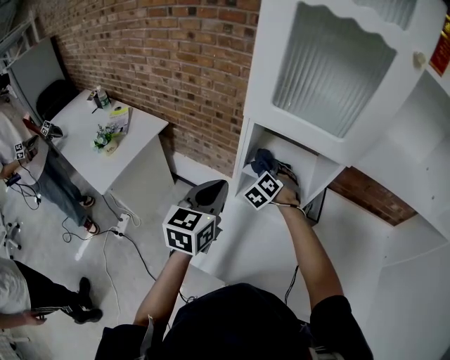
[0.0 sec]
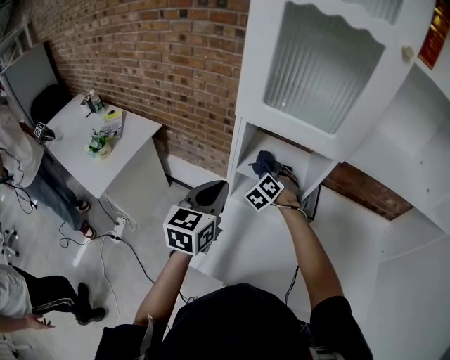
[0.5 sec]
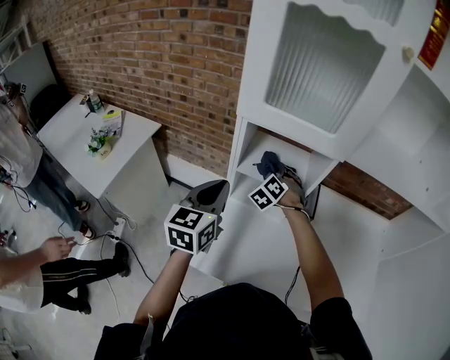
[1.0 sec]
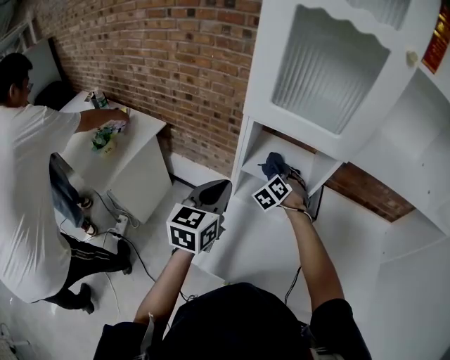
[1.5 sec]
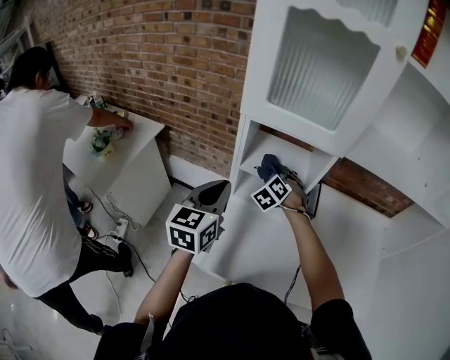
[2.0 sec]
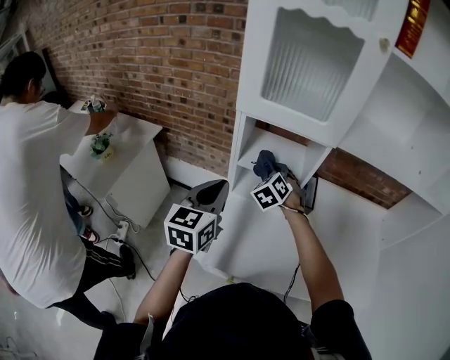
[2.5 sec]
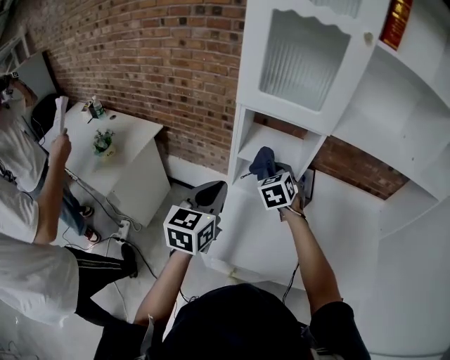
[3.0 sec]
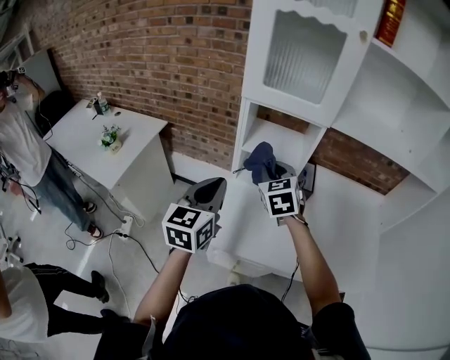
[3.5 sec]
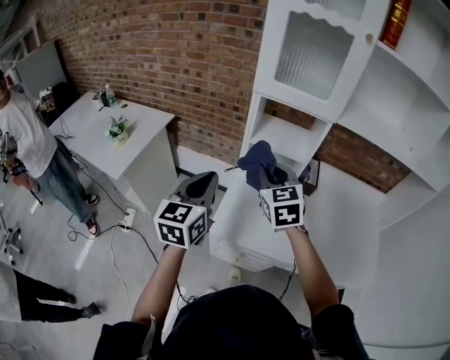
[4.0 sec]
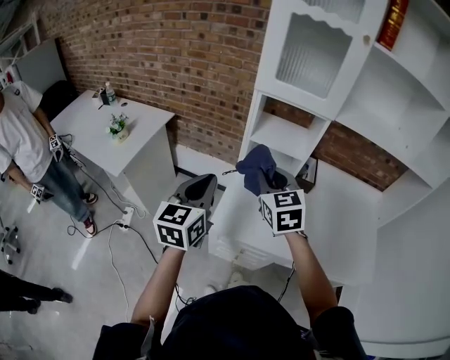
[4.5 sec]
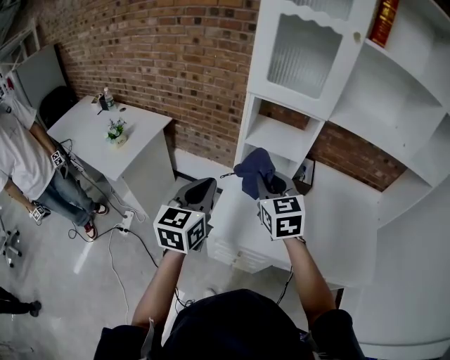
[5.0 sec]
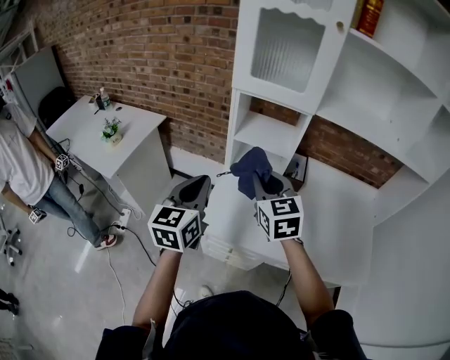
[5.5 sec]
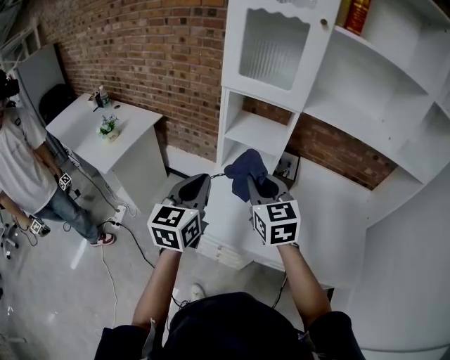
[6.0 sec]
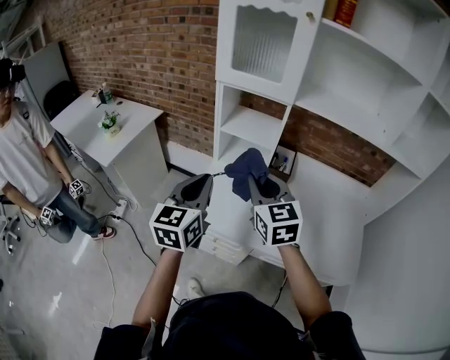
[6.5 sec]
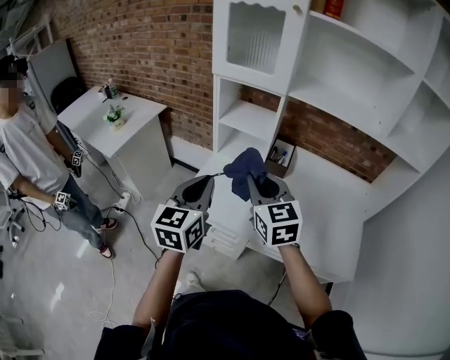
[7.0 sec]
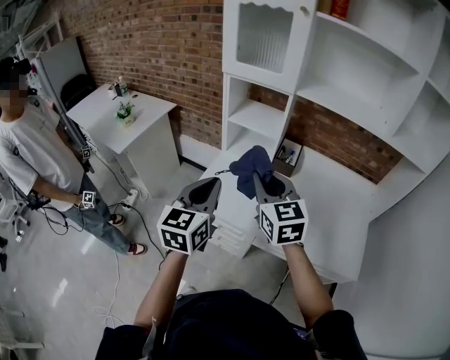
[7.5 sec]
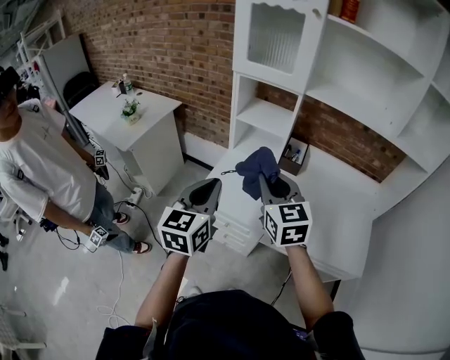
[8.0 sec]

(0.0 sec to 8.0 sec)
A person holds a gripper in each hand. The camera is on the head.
0.0 sec - 2.0 sec: The right gripper changes place by about 5 cm.
2.0 sec - 4.0 sec: The left gripper shifts about 15 cm backward, while the right gripper heads backward and upward, covering some 30 cm, and swivels roughly 40 degrees.
4.0 sec - 6.0 sec: The left gripper shifts some 10 cm to the right, while the right gripper shifts approximately 10 cm backward and to the right.
6.0 sec - 8.0 sec: Both grippers move backward, roughly 10 cm.

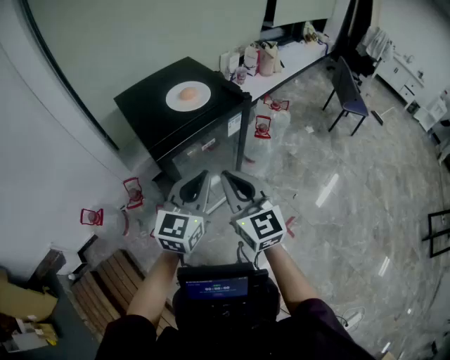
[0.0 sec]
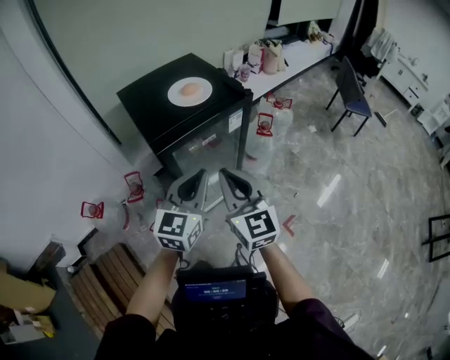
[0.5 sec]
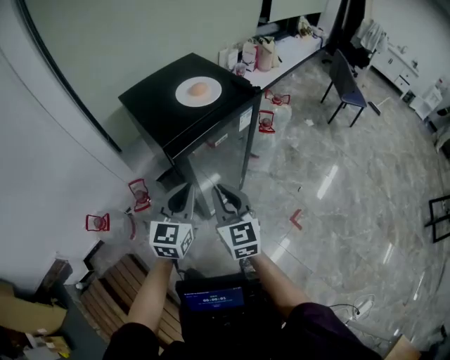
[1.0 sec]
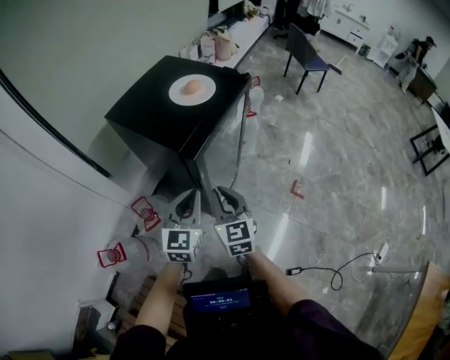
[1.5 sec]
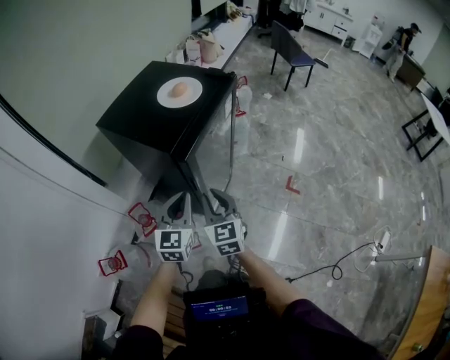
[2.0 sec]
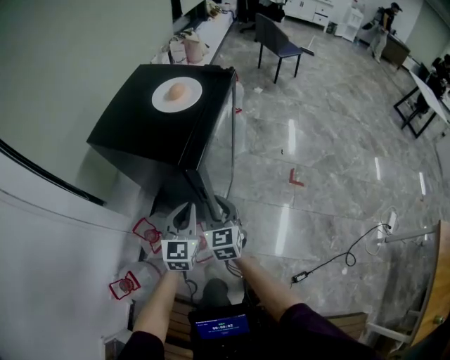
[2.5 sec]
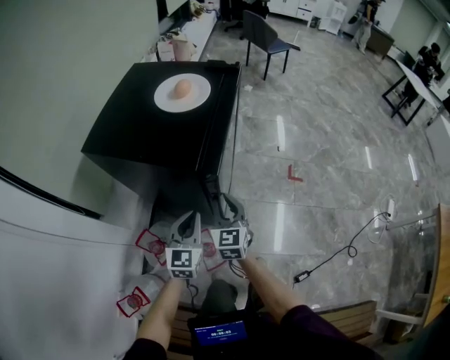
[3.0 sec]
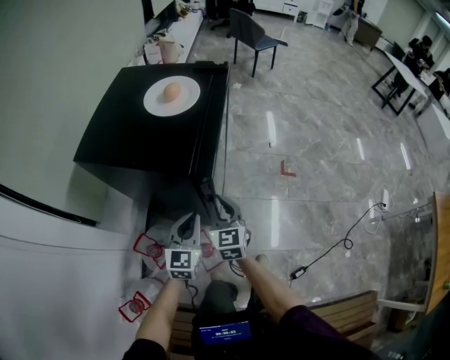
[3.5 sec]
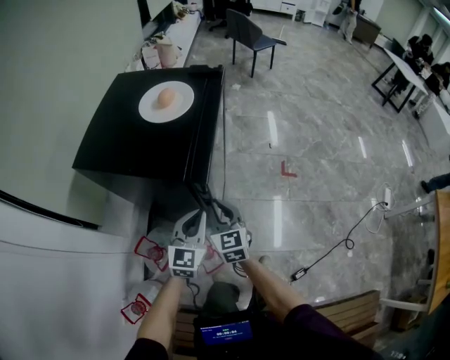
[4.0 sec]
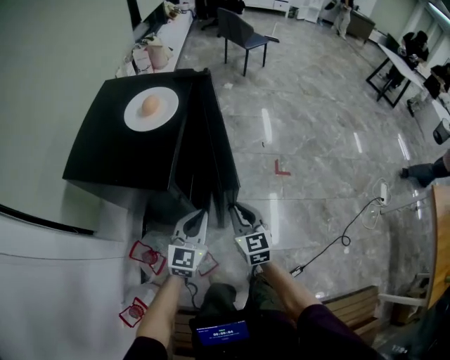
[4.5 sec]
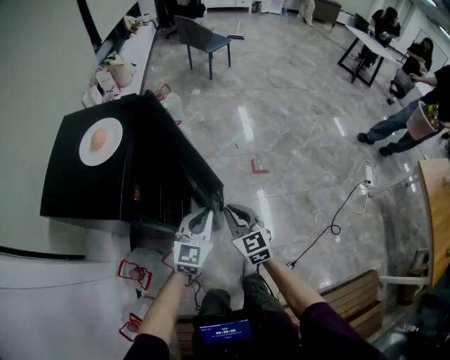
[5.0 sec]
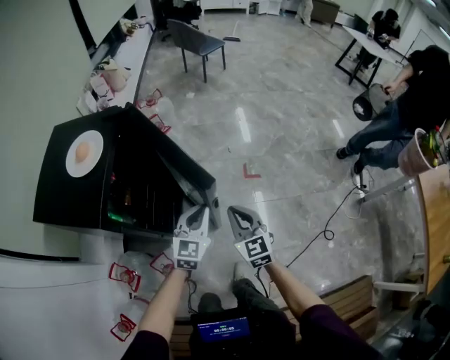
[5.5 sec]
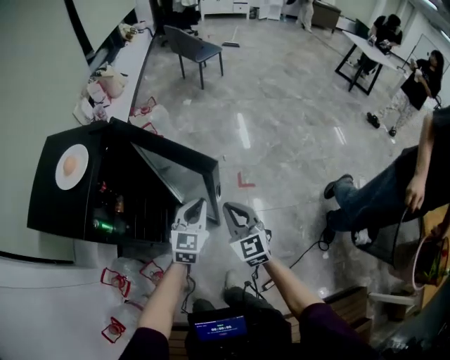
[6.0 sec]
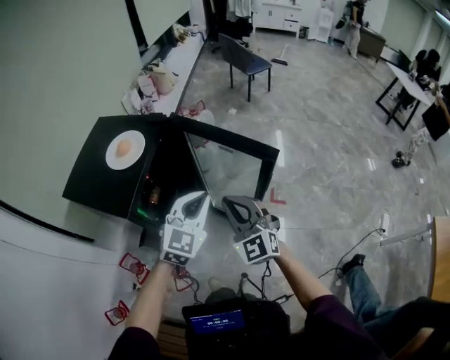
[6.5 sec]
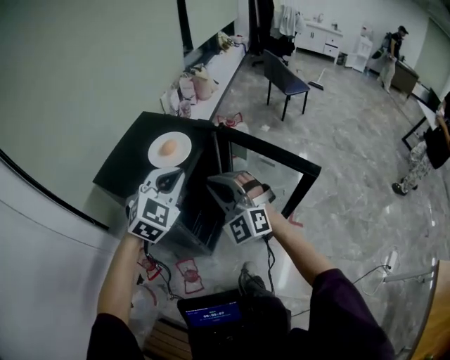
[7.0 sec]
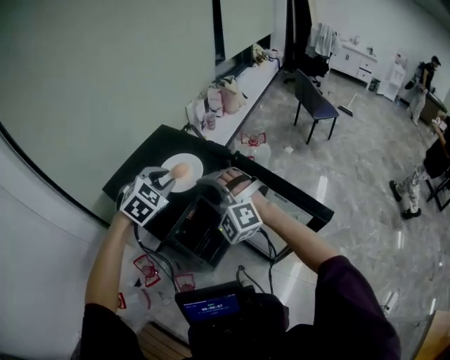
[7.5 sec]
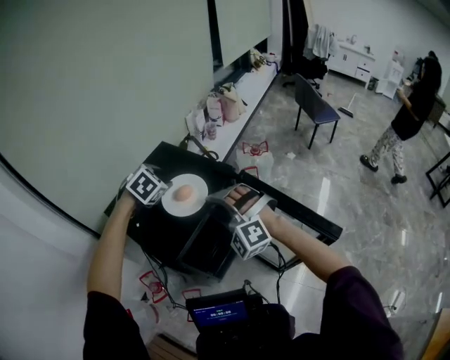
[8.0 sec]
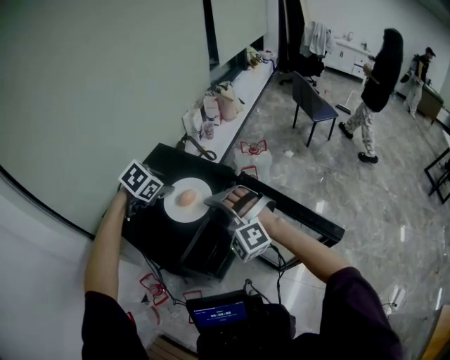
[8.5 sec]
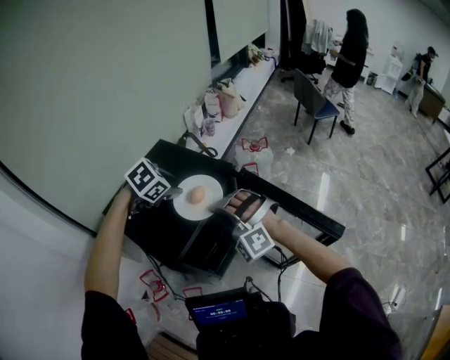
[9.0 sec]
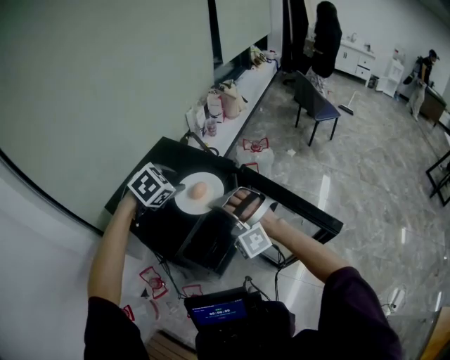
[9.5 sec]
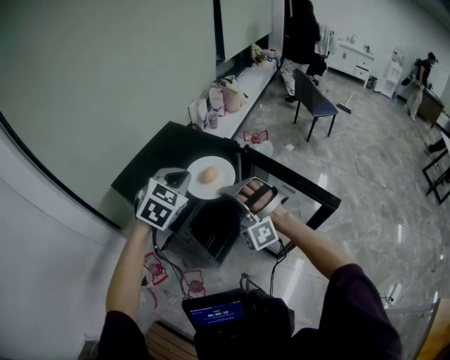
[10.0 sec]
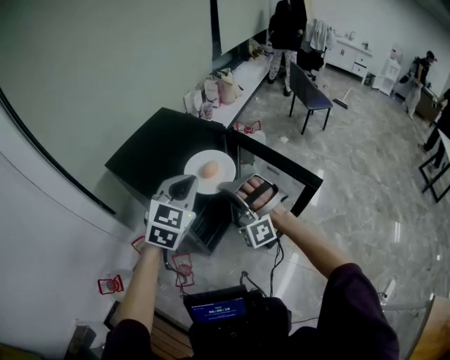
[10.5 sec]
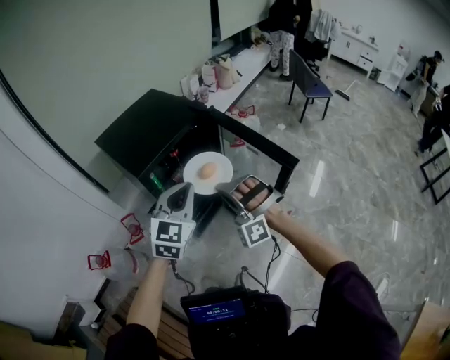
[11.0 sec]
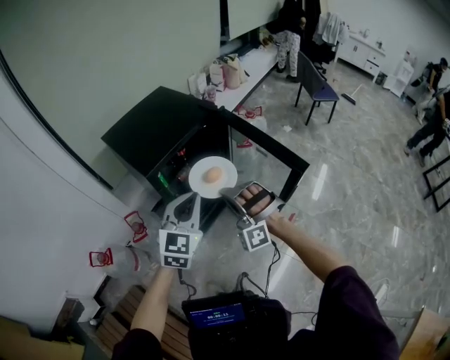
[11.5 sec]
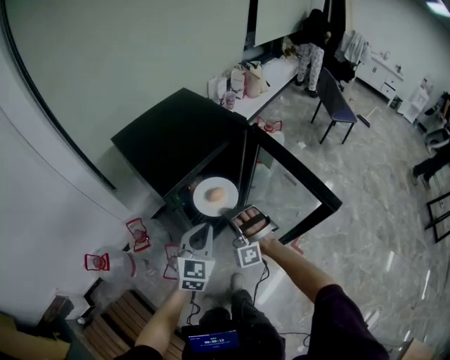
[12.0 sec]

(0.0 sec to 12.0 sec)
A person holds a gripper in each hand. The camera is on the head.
0.0 sec - 2.0 sec: The two grippers go about 25 cm to the left and downward. The right gripper rotates some 40 degrees.
2.0 sec - 4.0 sec: The right gripper shifts roughly 15 cm downward, forward and to the left. Meanwhile the left gripper is displaced downward and forward by approximately 10 cm, and changes its angle by some 20 degrees.
4.0 sec - 6.0 sec: The left gripper moves to the right and forward, roughly 35 cm, while the right gripper is displaced to the right by about 35 cm.
6.0 sec - 8.0 sec: The right gripper shifts by approximately 40 cm, rolls counterclockwise, seen from behind, by roughly 70 degrees, and opens up. The left gripper shifts by about 50 cm, tips its fingers downward by about 40 degrees, and opens up.
8.0 sec - 10.0 sec: The right gripper travels backward by approximately 5 cm, changes its angle by roughly 20 degrees, and closes. Meanwhile the left gripper travels backward by roughly 15 cm, turns by roughly 20 degrees, and closes.
10.0 sec - 12.0 sec: The right gripper heads downward and backward, covering roughly 15 cm. The left gripper heads backward and downward, covering approximately 25 cm, and rotates roughly 30 degrees.

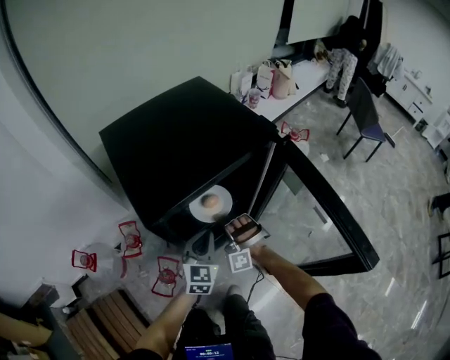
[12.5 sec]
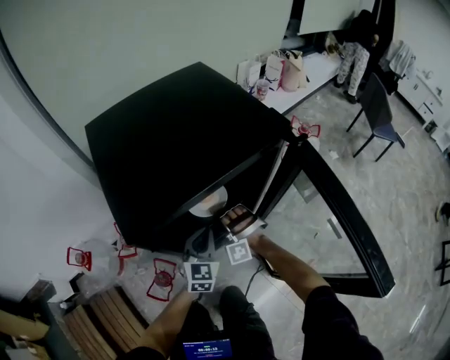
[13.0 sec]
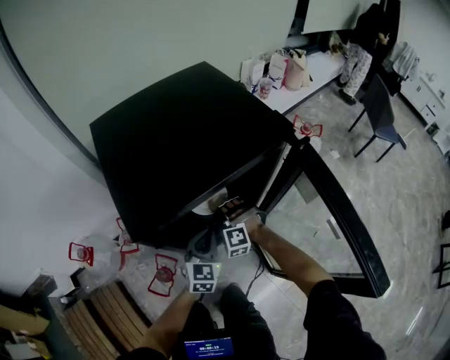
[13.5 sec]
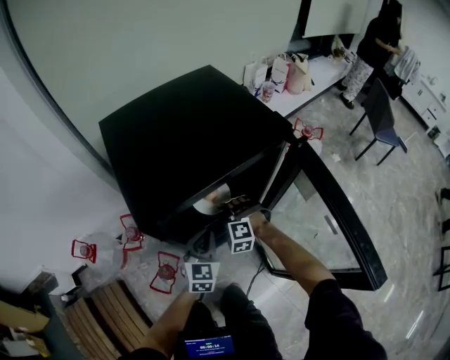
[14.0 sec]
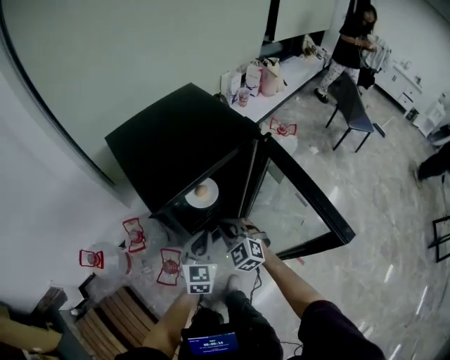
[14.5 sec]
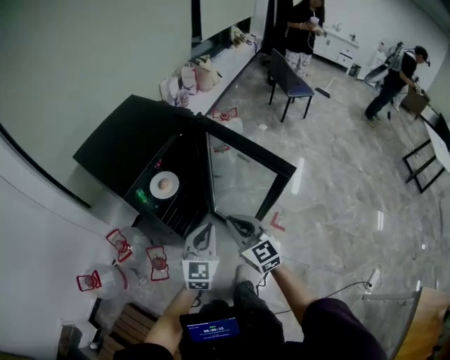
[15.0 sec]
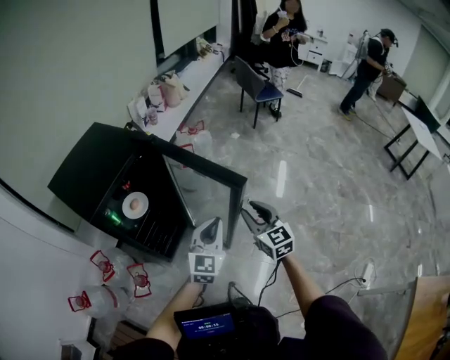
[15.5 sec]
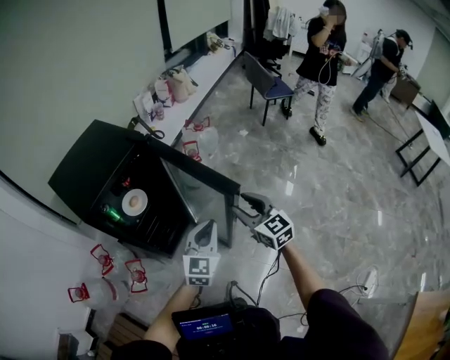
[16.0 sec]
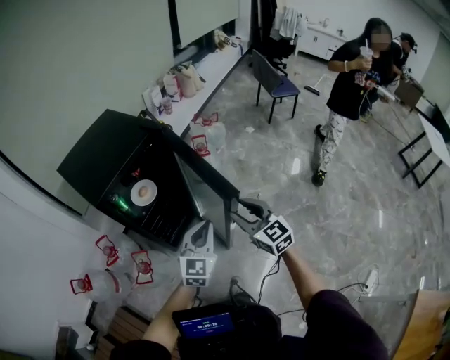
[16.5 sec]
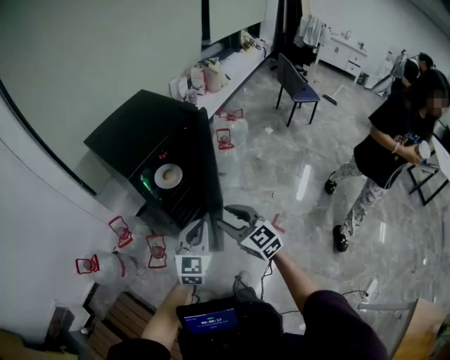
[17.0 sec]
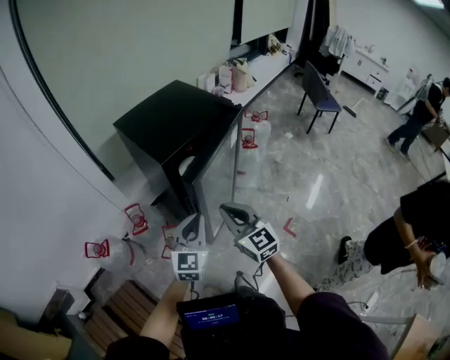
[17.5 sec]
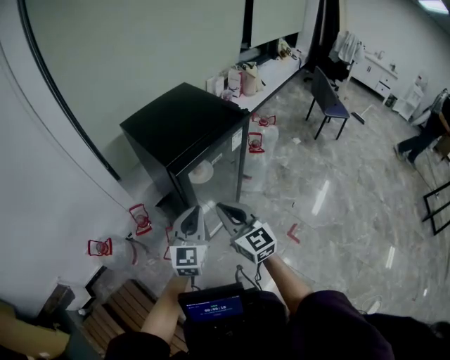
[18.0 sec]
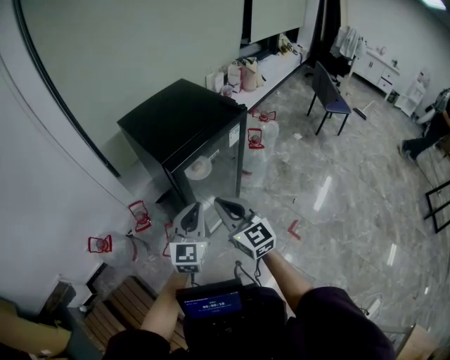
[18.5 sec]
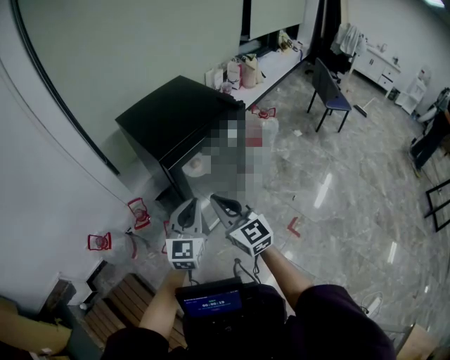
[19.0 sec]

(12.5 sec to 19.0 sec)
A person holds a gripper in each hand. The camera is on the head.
12.5 sec - 14.5 sec: The right gripper heads backward and upward, covering approximately 10 cm, rolls clockwise, seen from behind, by approximately 60 degrees, and opens, then closes once more. Meanwhile the left gripper travels upward and backward by some 10 cm.
14.5 sec - 17.0 sec: The right gripper rotates roughly 30 degrees, and opens up.
17.0 sec - 19.0 sec: The left gripper is displaced to the left, upward and forward by about 10 cm; the right gripper is displaced to the left and upward by roughly 10 cm, and closes its fingers.
